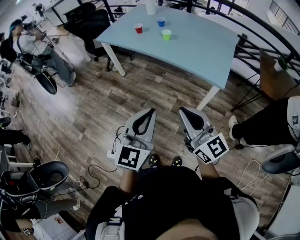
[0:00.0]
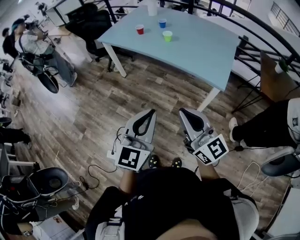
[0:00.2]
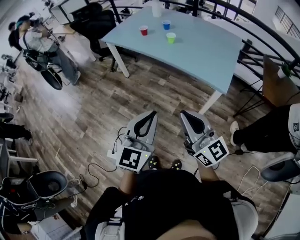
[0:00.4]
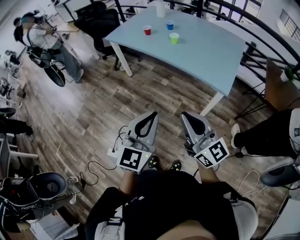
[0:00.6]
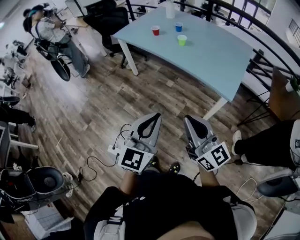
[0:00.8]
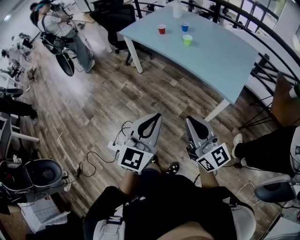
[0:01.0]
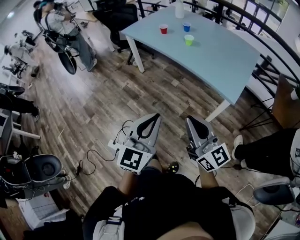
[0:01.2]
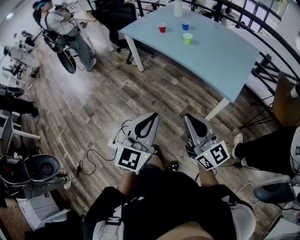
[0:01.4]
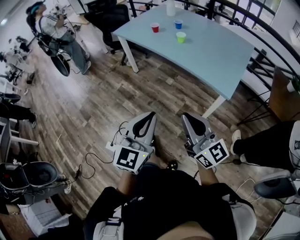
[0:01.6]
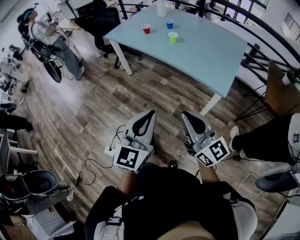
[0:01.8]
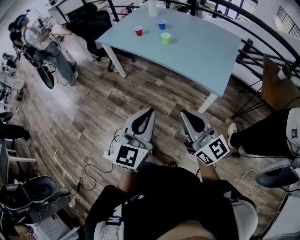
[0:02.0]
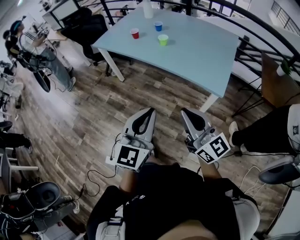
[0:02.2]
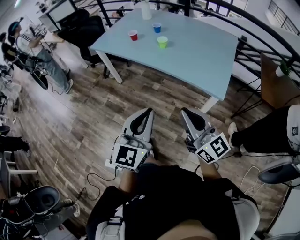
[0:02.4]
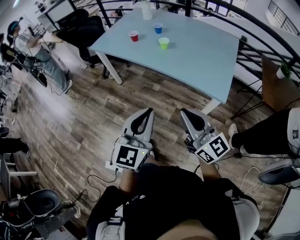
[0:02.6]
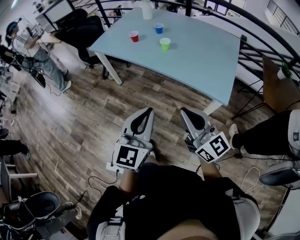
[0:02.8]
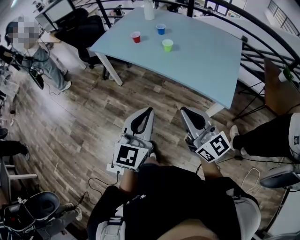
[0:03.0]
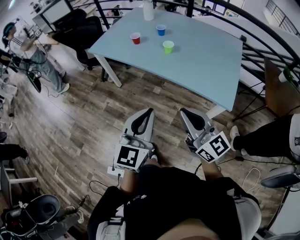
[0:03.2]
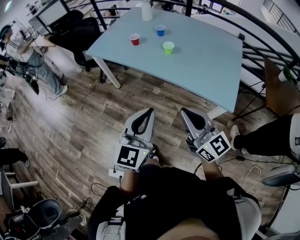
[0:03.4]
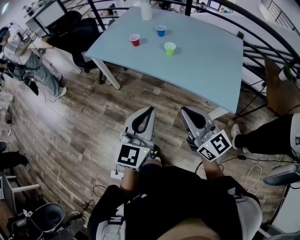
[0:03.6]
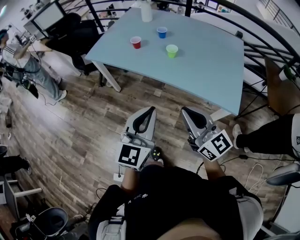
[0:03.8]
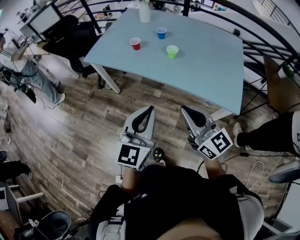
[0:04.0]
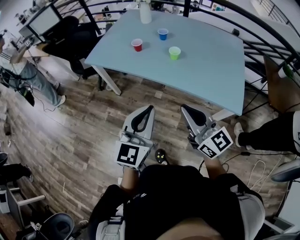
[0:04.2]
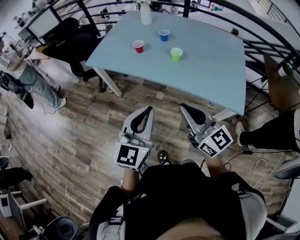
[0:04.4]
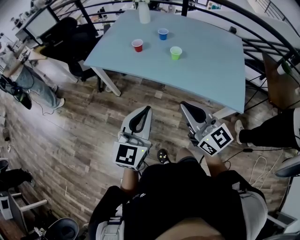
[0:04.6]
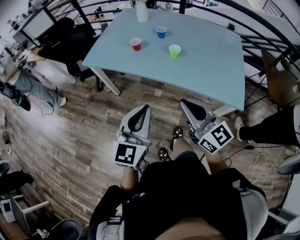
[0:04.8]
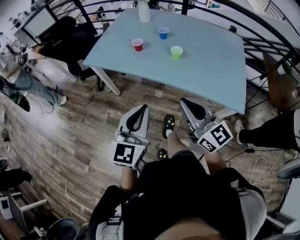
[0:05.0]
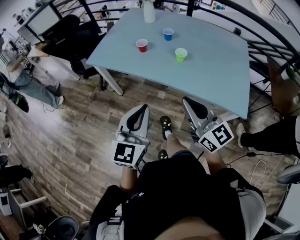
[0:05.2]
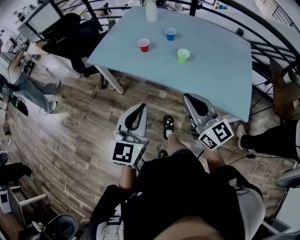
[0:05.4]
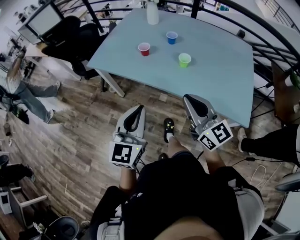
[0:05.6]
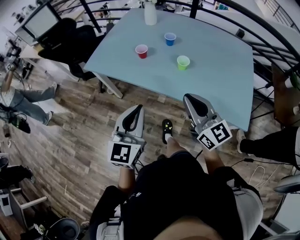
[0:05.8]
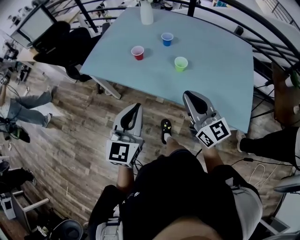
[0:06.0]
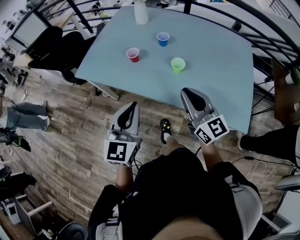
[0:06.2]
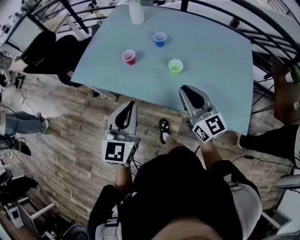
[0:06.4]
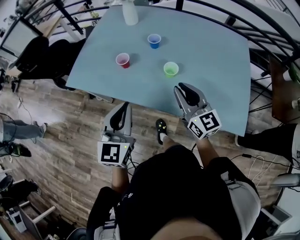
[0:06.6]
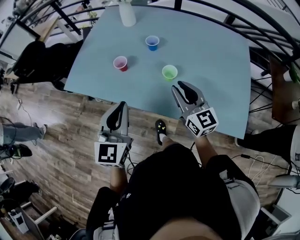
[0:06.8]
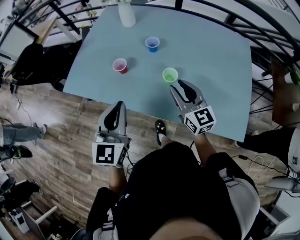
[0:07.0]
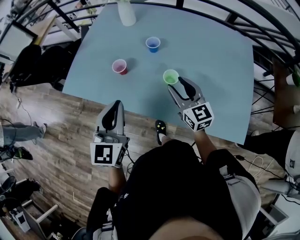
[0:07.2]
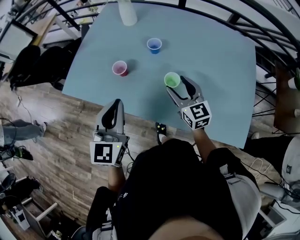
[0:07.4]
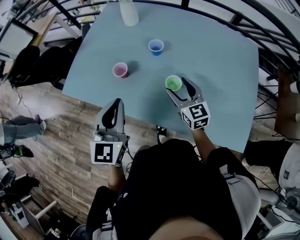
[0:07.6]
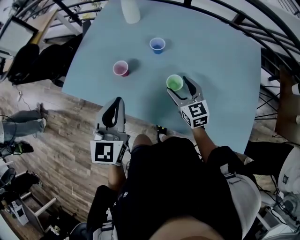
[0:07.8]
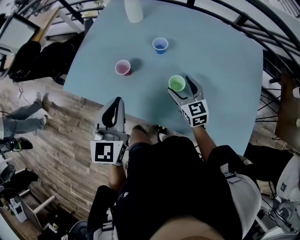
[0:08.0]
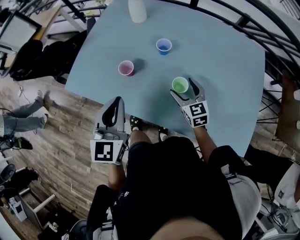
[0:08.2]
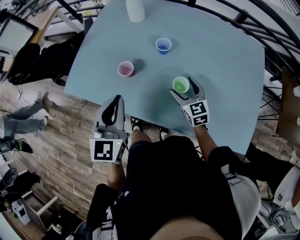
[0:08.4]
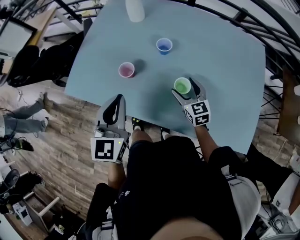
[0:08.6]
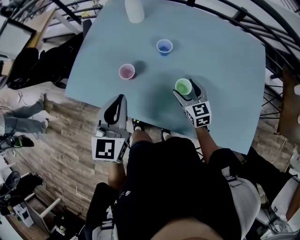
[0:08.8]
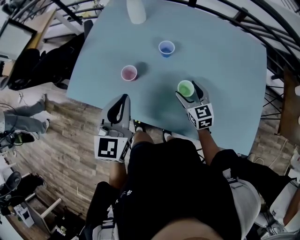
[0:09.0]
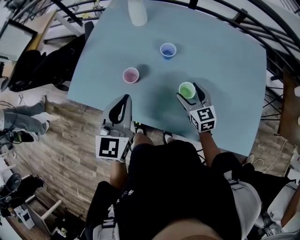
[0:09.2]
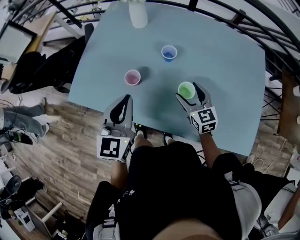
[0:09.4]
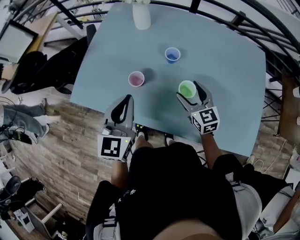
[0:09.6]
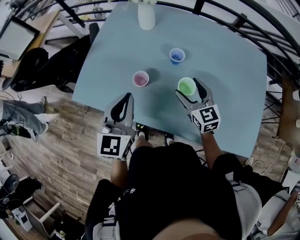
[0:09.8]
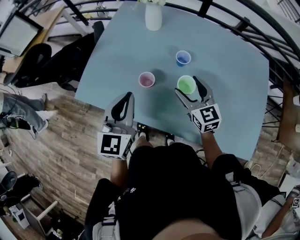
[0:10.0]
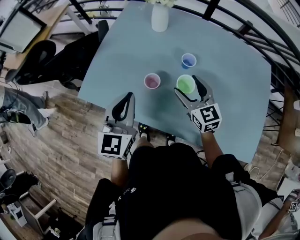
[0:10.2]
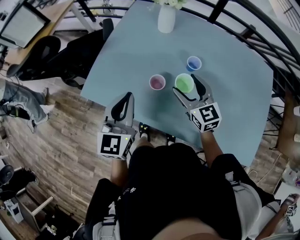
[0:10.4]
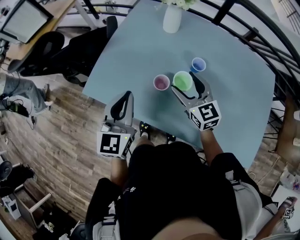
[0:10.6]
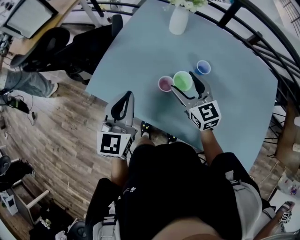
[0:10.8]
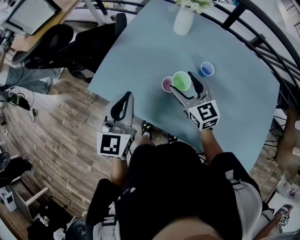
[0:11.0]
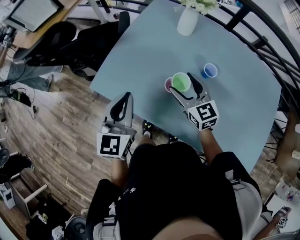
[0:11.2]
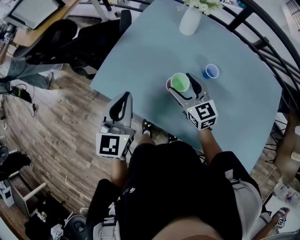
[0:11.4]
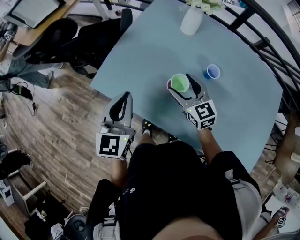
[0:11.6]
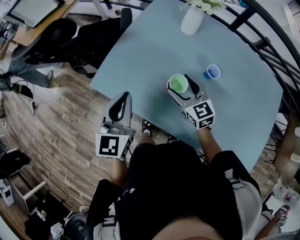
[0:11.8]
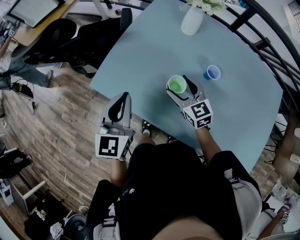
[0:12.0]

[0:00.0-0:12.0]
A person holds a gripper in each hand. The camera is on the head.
0:00.0 to 0:01.6: The grippers stay close to where they were, moving slightly.
0:01.6 to 0:03.0: Both grippers move forward, some 20 cm.
0:03.0 to 0:04.4: The grippers both shift forward and to the left by some 20 cm.
0:04.4 to 0:06.0: Both grippers move forward, roughly 20 cm.
0:06.0 to 0:07.6: The right gripper travels forward and downward by roughly 30 cm, rotates approximately 20 degrees, and opens its fingers, while the left gripper travels forward by about 20 cm.
0:07.6 to 0:09.0: The left gripper is displaced forward by some 5 cm. Meanwhile the right gripper moves downward, approximately 5 cm.
0:09.0 to 0:10.4: The right gripper goes approximately 20 cm to the left, upward and forward. The left gripper shifts about 10 cm to the left.
0:10.4 to 0:12.0: The left gripper shifts about 10 cm to the left. Meanwhile the right gripper is displaced to the left, downward and forward by some 15 cm.

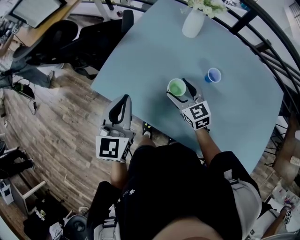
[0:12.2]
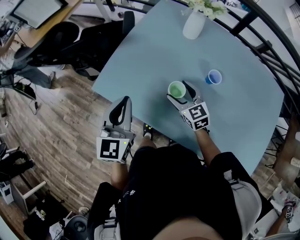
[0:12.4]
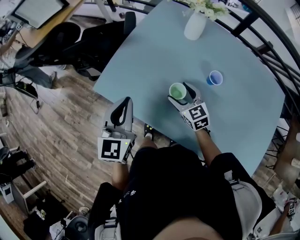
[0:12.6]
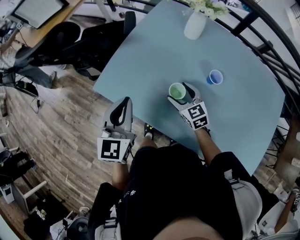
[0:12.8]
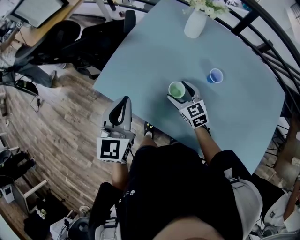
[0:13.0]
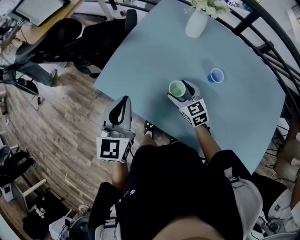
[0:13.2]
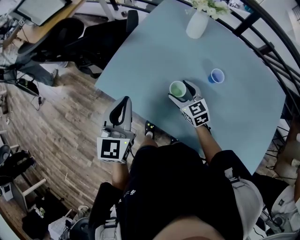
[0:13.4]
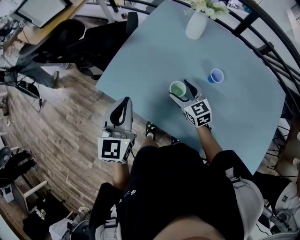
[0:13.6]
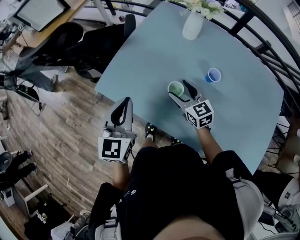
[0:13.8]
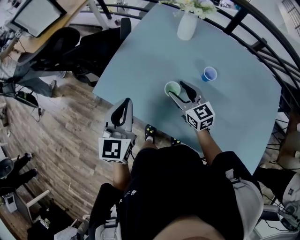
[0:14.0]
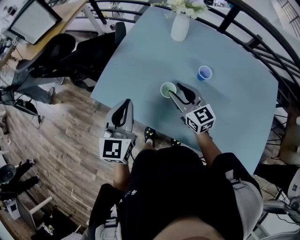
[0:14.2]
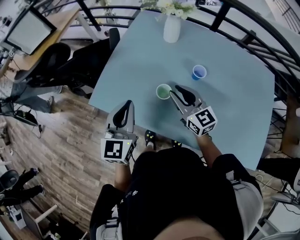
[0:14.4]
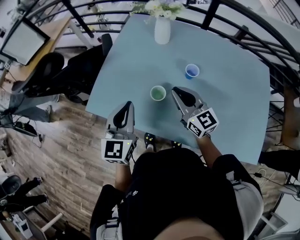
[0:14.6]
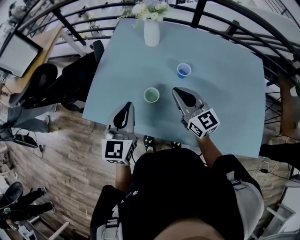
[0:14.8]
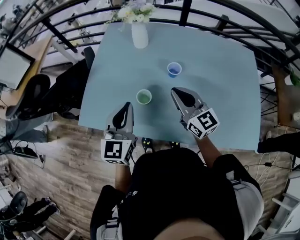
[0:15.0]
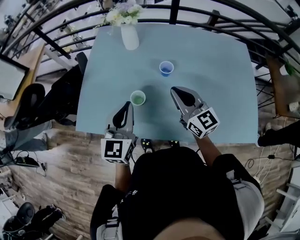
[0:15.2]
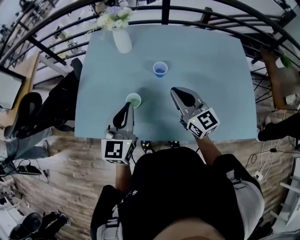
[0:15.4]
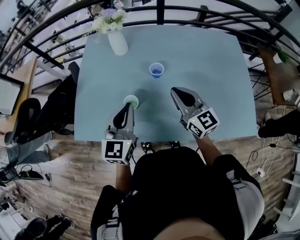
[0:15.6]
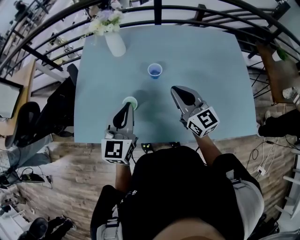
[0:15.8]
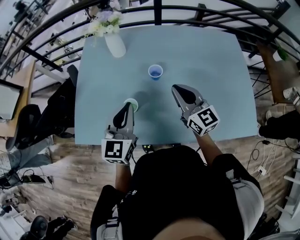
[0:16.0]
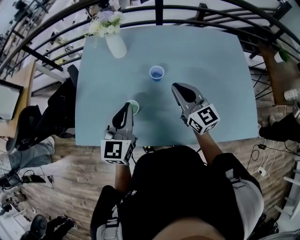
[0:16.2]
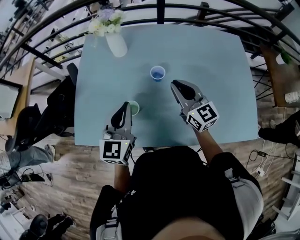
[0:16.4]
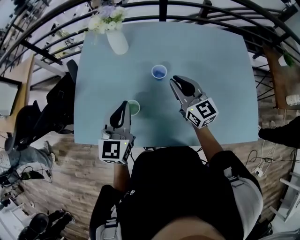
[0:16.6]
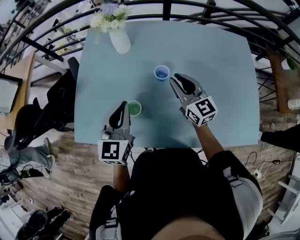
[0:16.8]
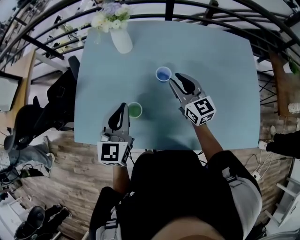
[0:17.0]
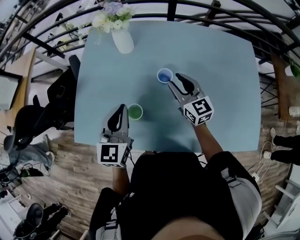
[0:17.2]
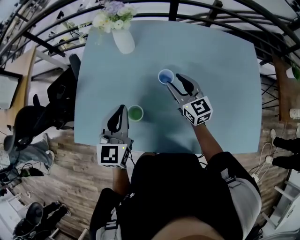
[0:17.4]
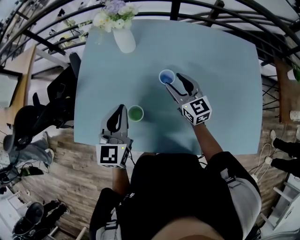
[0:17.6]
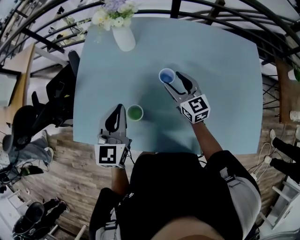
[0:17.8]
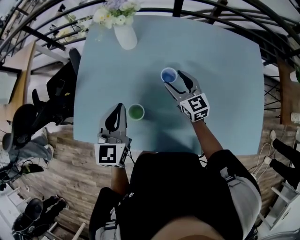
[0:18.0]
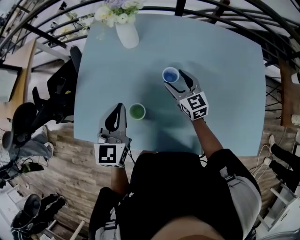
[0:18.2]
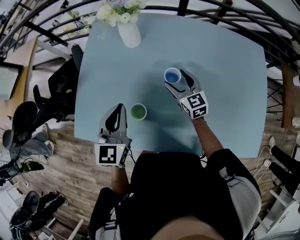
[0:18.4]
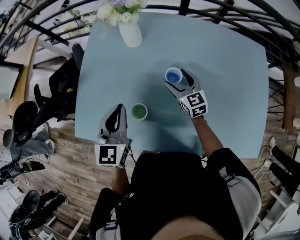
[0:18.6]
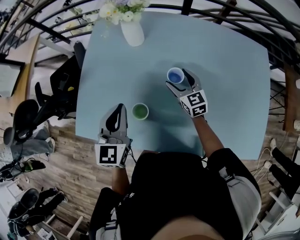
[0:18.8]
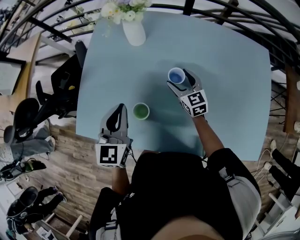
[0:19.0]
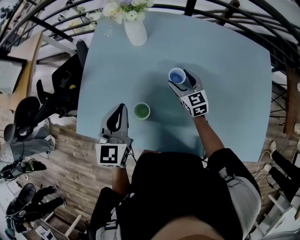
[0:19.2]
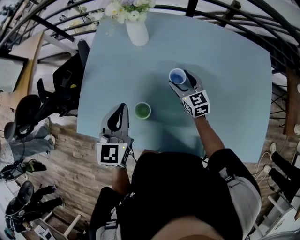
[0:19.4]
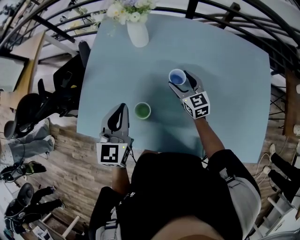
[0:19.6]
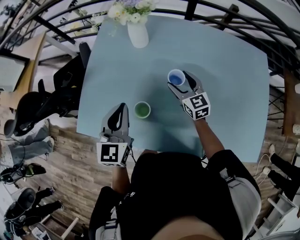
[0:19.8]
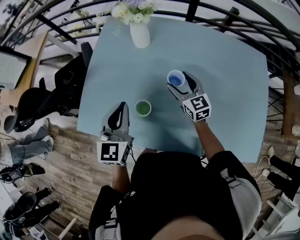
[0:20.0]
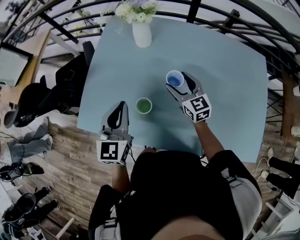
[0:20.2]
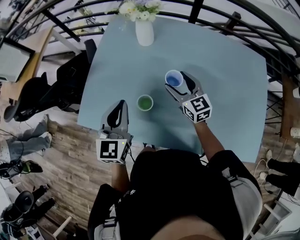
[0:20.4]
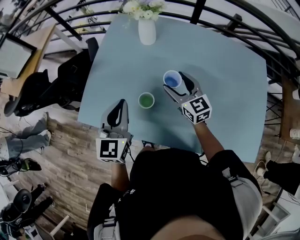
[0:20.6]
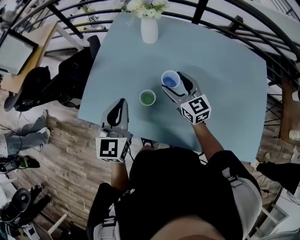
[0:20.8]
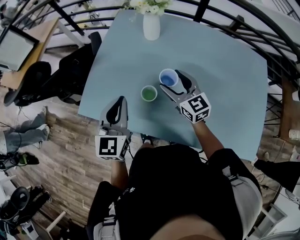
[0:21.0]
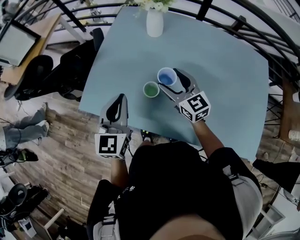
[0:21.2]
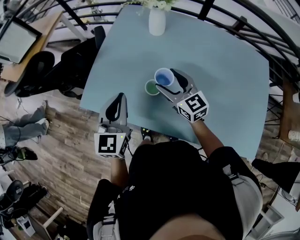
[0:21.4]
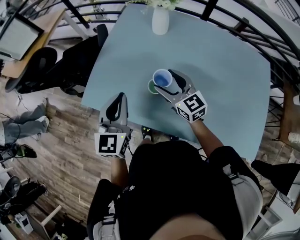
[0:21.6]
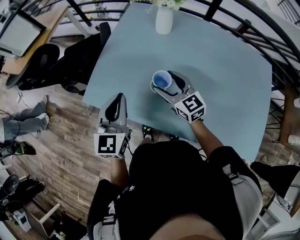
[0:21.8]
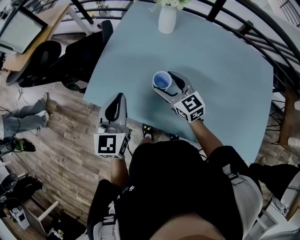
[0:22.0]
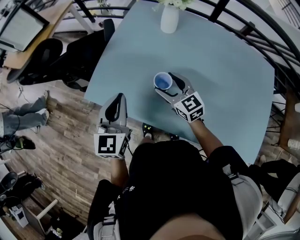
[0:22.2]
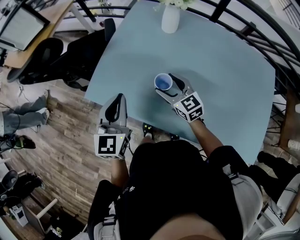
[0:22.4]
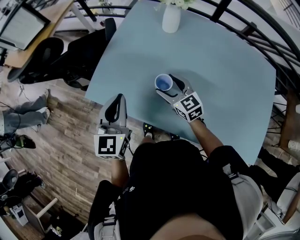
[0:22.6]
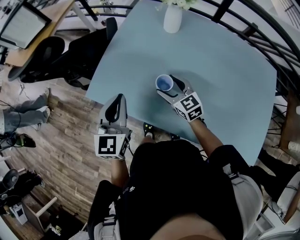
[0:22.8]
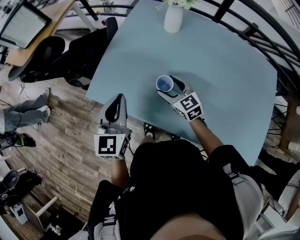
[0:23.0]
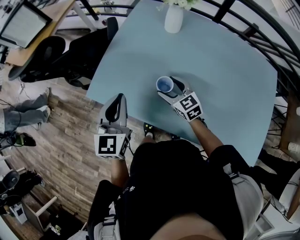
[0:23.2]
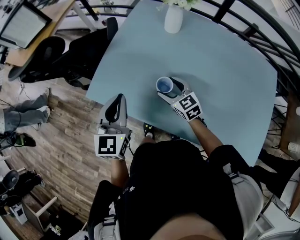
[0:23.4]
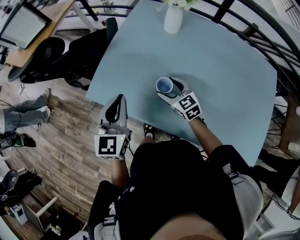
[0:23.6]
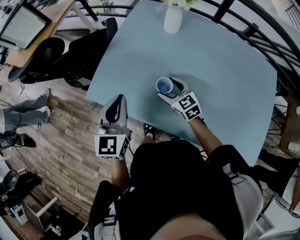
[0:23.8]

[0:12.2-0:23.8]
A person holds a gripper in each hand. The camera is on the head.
0:12.2 to 0:13.6: There are only small adjustments of the grippers.
0:13.6 to 0:15.0: The right gripper moves upward, to the right and backward, some 20 cm, swivels some 30 degrees, and closes up, while the left gripper travels to the right by roughly 15 cm, and swivels about 20 degrees.
0:15.0 to 0:16.6: The left gripper shifts about 10 cm forward and to the right, while the right gripper moves to the right and forward, roughly 10 cm.
0:16.6 to 0:18.0: The left gripper ends up some 5 cm from where it was. Meanwhile the right gripper moves downward and forward, approximately 10 cm, and opens.
0:18.0 to 0:19.4: The right gripper shifts some 5 cm downward.
0:19.4 to 0:21.0: The left gripper moves backward and to the left, some 10 cm, while the right gripper goes roughly 15 cm upward, to the left and backward.
0:21.0 to 0:22.4: The left gripper moves to the left, about 5 cm. The right gripper goes about 10 cm to the left and downward.
0:22.4 to 0:23.8: The right gripper travels downward by about 5 cm.
